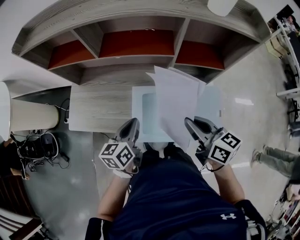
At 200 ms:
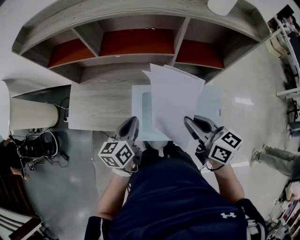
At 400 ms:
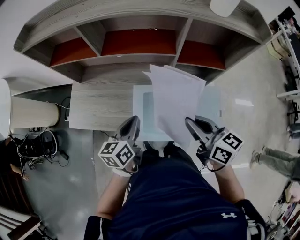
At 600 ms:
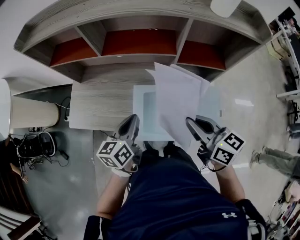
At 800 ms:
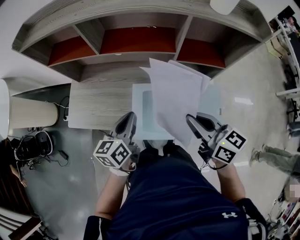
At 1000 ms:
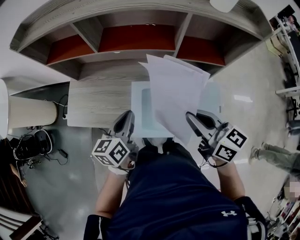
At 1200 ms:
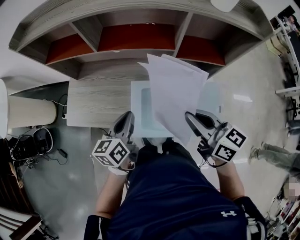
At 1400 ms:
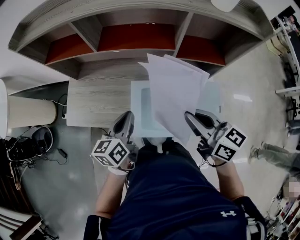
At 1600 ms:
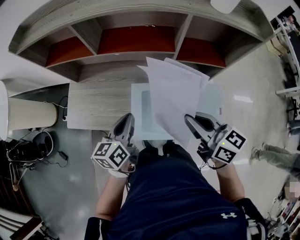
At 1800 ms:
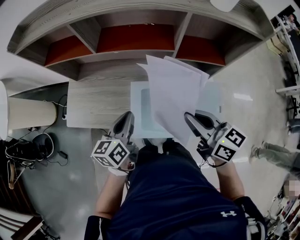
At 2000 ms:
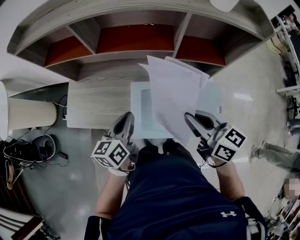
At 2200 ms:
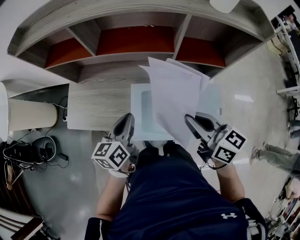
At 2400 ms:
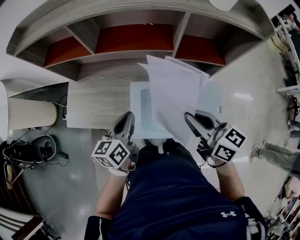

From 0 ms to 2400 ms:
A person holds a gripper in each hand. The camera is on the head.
From 0 ms to 1200 ms: There are only small adjustments of the grippers.
From 1200 ms to 2400 ms: Both grippers stay put.

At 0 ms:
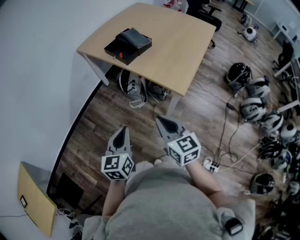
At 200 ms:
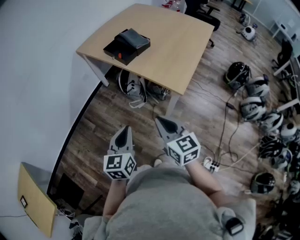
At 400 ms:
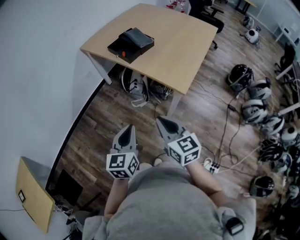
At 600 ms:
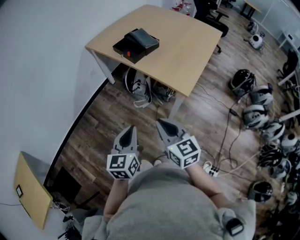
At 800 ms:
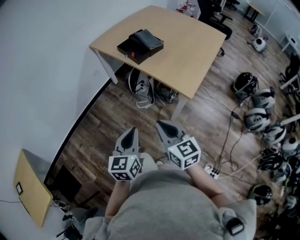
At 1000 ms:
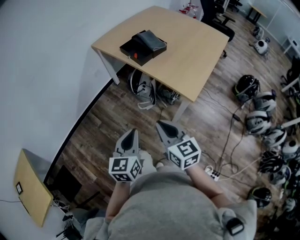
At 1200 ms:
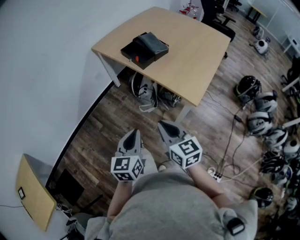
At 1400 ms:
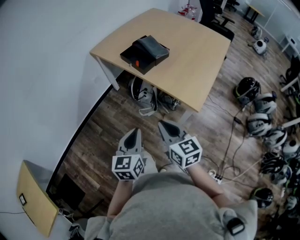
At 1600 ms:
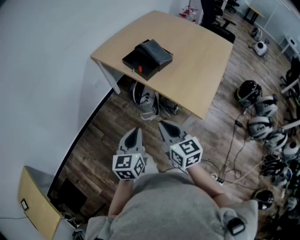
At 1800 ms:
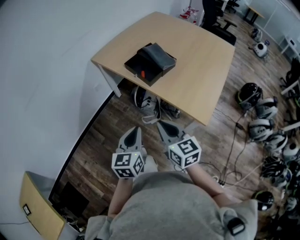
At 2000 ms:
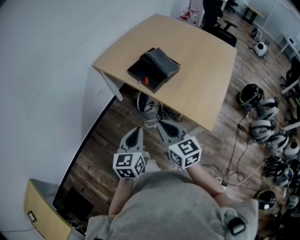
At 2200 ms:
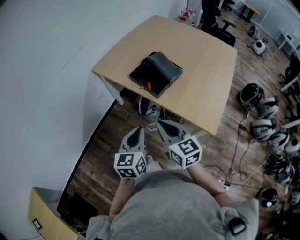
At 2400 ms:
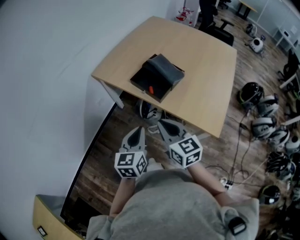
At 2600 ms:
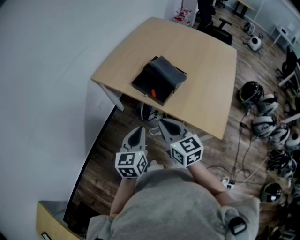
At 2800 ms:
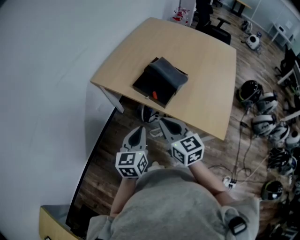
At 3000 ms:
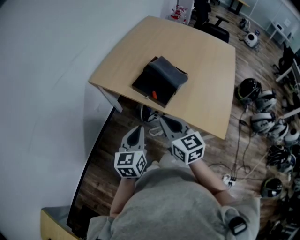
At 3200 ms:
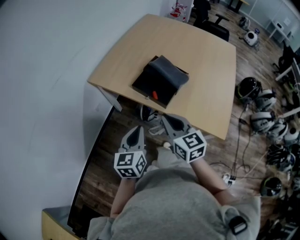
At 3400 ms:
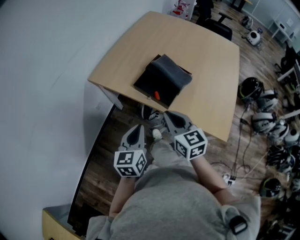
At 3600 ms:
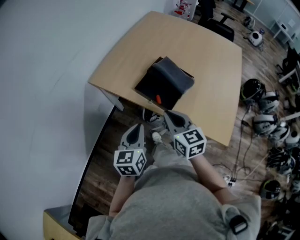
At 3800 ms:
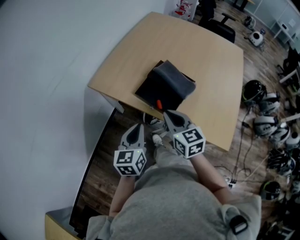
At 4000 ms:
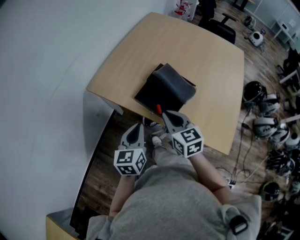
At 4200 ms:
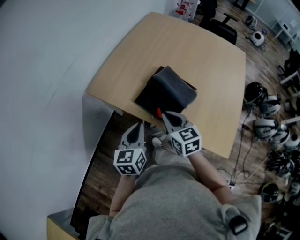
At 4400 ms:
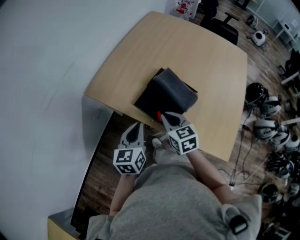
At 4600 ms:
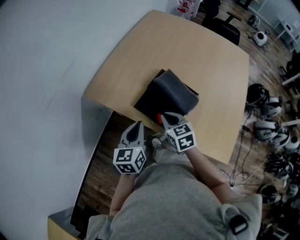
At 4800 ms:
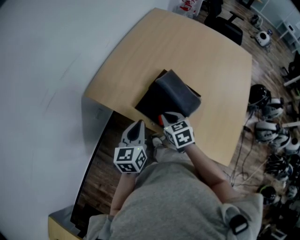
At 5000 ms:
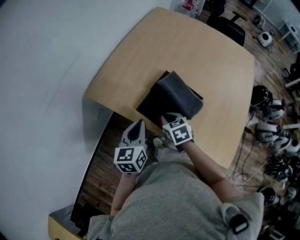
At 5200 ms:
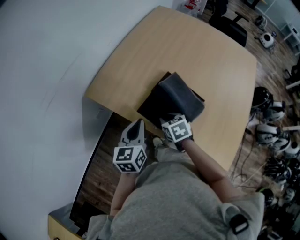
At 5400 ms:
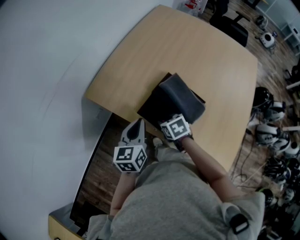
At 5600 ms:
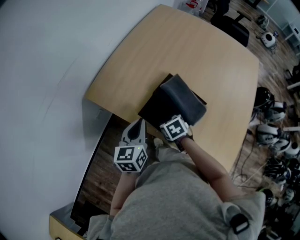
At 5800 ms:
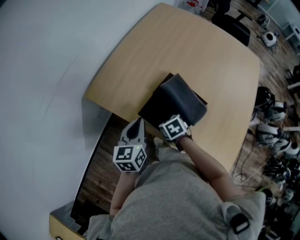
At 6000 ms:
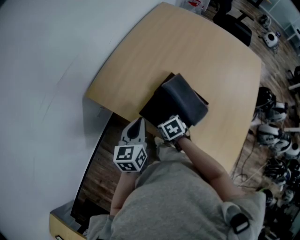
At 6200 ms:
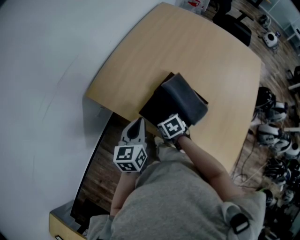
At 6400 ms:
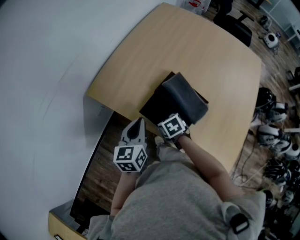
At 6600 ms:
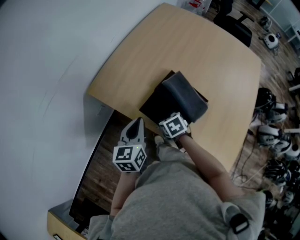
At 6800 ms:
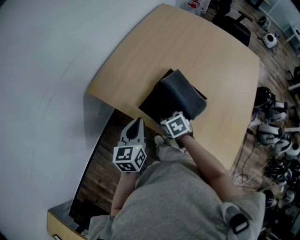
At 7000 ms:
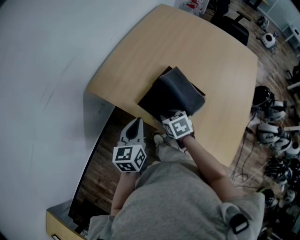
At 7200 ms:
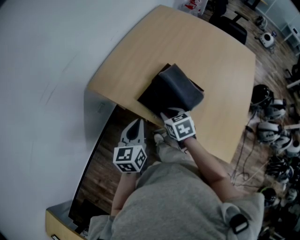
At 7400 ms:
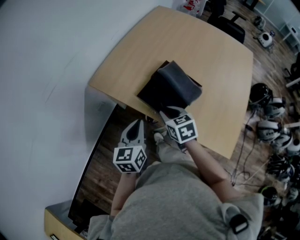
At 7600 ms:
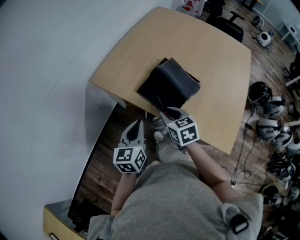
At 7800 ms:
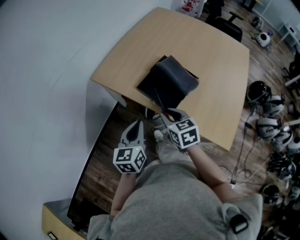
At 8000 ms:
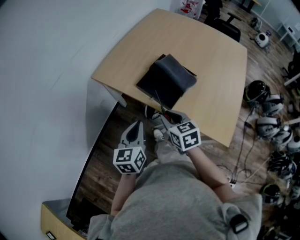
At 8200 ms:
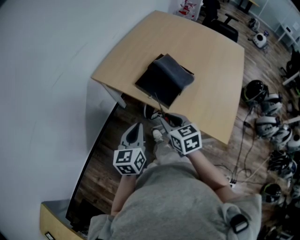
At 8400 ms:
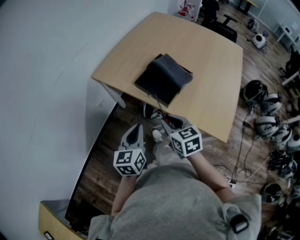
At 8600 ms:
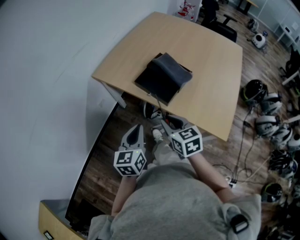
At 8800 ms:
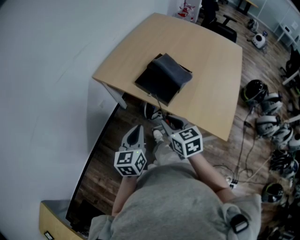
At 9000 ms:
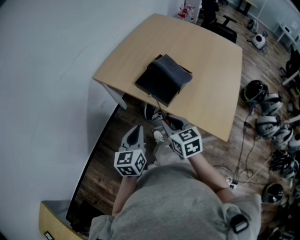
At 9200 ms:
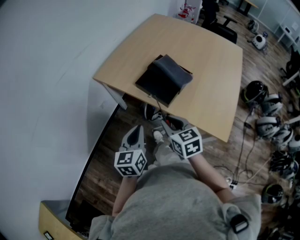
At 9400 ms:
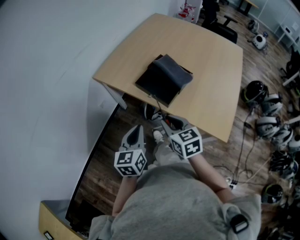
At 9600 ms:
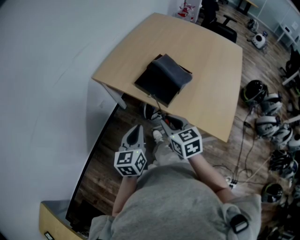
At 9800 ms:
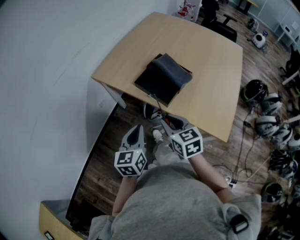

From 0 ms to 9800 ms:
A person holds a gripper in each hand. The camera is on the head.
From 0 ms to 1400 ms: The right gripper is displaced forward and to the left by roughly 10 cm; the left gripper travels forward by some 5 cm.
From 1400 ms to 2800 ms: The left gripper is displaced forward by approximately 25 cm; the right gripper goes roughly 30 cm forward and to the left.
From 2800 ms to 4200 ms: The grippers both shift forward by some 15 cm.
From 4200 ms to 5600 ms: The left gripper is displaced forward by roughly 10 cm. The right gripper heads downward and forward, covering approximately 15 cm, tilts its fingers some 40 degrees downward, and opens its fingers.
From 5600 ms to 7000 ms: The left gripper moves approximately 5 cm.
From 7000 ms to 8400 ms: The left gripper is displaced backward by approximately 20 cm. Meanwhile the right gripper heads backward and upward, covering some 20 cm, and changes its angle by about 20 degrees.
From 8400 ms to 9800 ms: There are only small adjustments of the grippers.

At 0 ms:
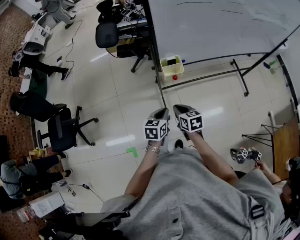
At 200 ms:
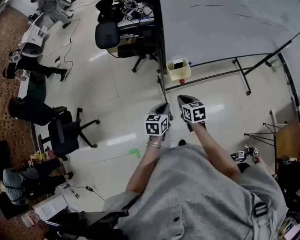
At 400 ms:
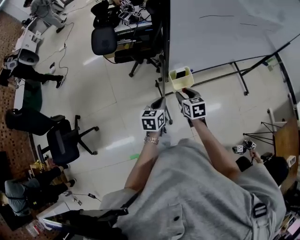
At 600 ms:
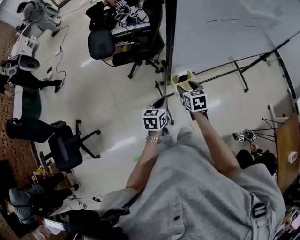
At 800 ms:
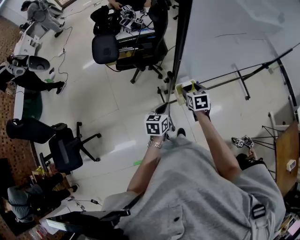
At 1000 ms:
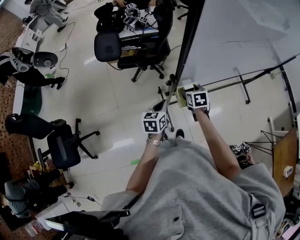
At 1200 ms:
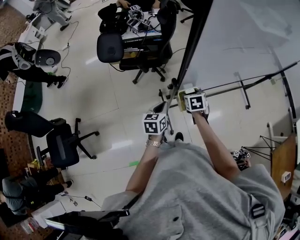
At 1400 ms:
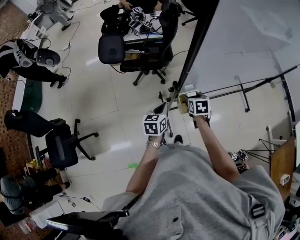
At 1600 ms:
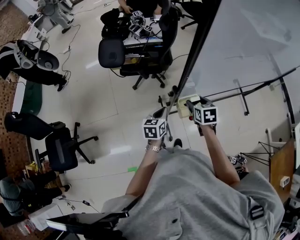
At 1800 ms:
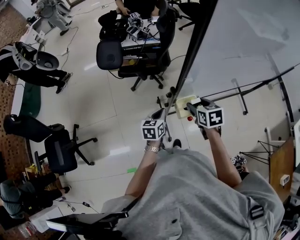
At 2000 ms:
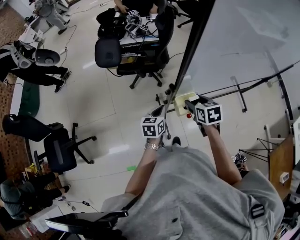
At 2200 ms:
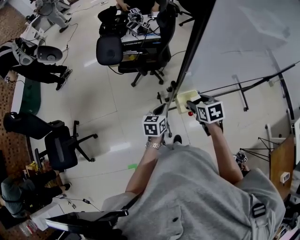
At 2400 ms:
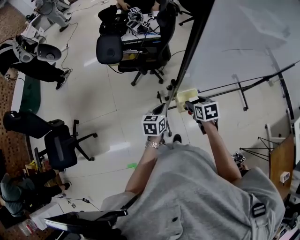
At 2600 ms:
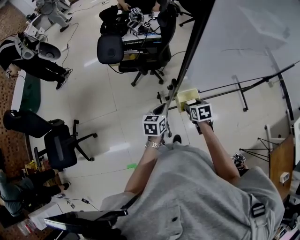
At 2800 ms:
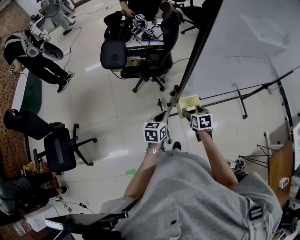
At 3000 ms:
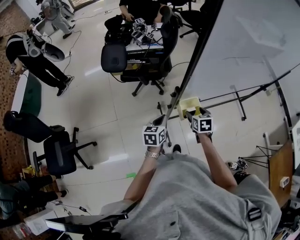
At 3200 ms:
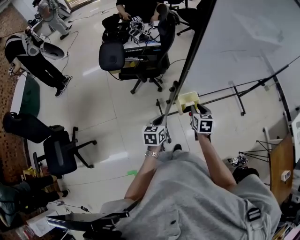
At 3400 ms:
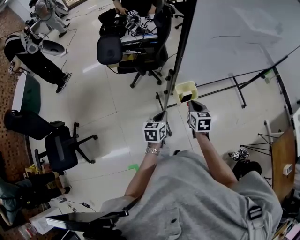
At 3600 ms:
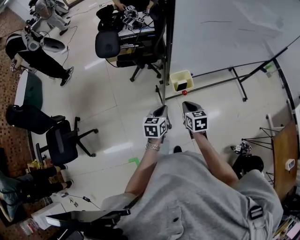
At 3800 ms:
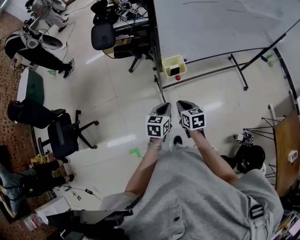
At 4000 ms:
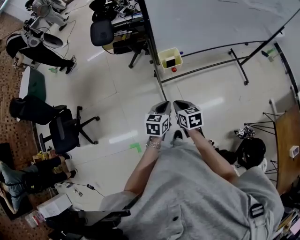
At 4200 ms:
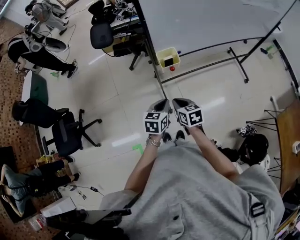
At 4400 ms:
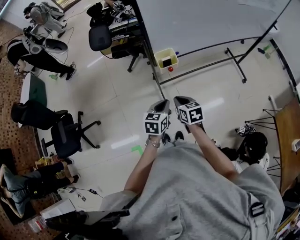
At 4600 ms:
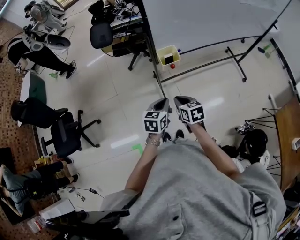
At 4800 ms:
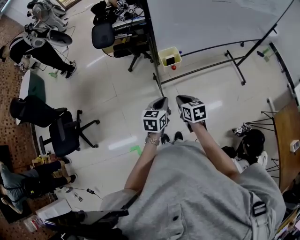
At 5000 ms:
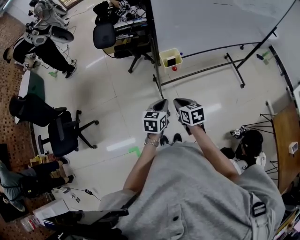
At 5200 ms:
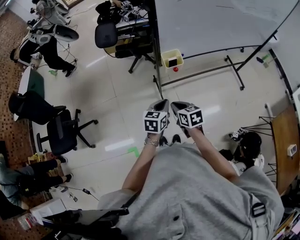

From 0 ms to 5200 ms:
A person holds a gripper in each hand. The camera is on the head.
From 0 ms to 1800 ms: The left gripper heads forward and to the left, covering approximately 25 cm; the right gripper moves forward, approximately 25 cm, and opens its fingers.
From 1800 ms to 3400 ms: Both grippers travel together backward, some 10 cm. The right gripper closes up.
From 3400 ms to 5200 ms: Both grippers move backward, approximately 20 cm. The right gripper rotates some 20 degrees.

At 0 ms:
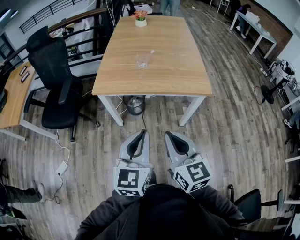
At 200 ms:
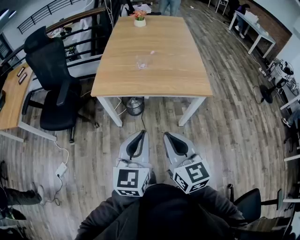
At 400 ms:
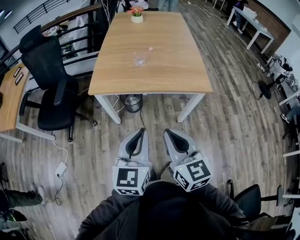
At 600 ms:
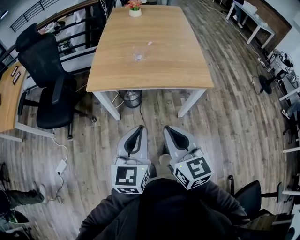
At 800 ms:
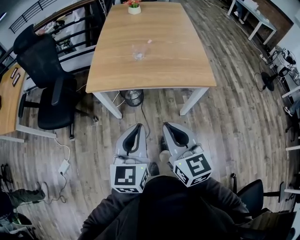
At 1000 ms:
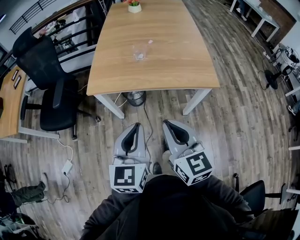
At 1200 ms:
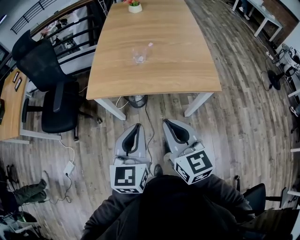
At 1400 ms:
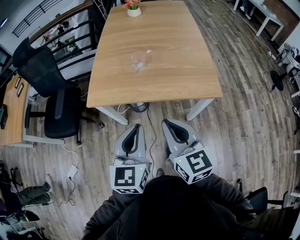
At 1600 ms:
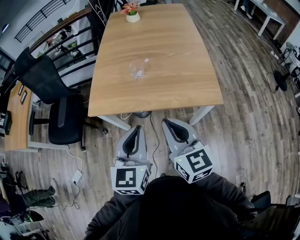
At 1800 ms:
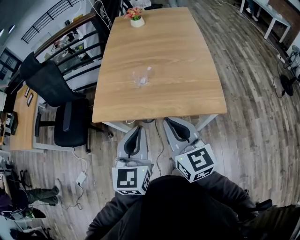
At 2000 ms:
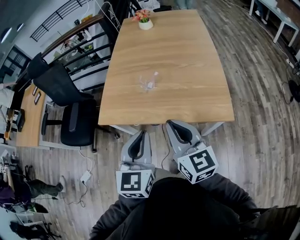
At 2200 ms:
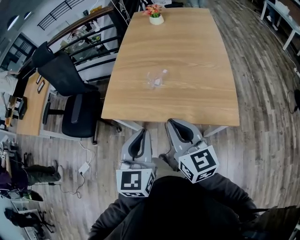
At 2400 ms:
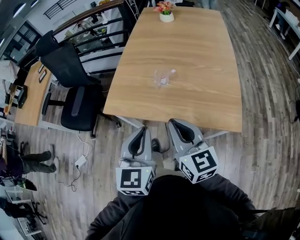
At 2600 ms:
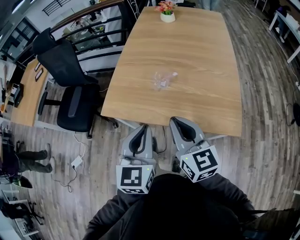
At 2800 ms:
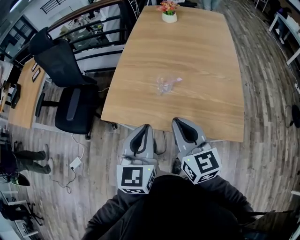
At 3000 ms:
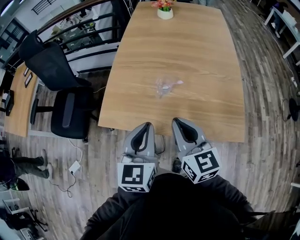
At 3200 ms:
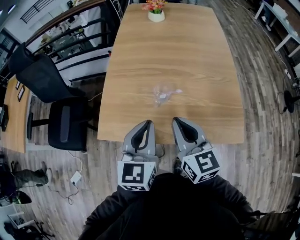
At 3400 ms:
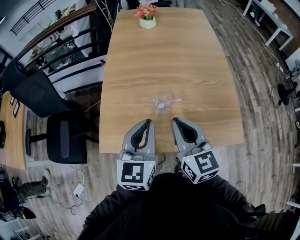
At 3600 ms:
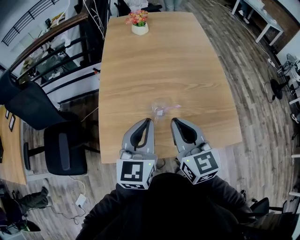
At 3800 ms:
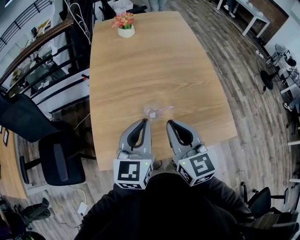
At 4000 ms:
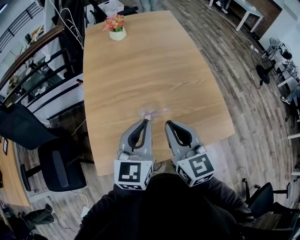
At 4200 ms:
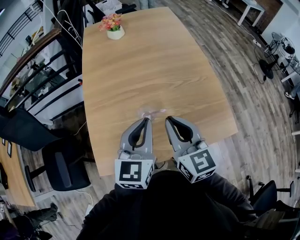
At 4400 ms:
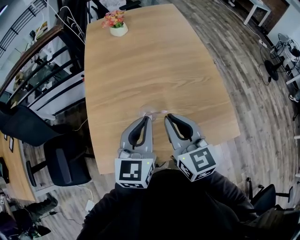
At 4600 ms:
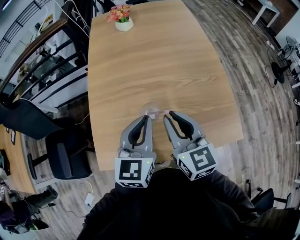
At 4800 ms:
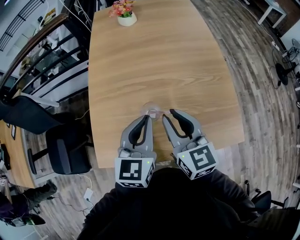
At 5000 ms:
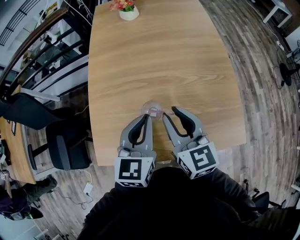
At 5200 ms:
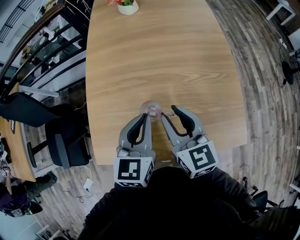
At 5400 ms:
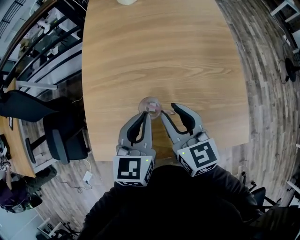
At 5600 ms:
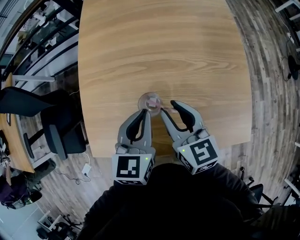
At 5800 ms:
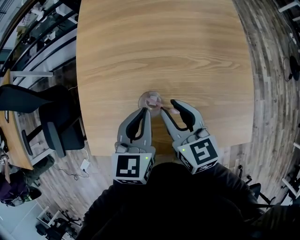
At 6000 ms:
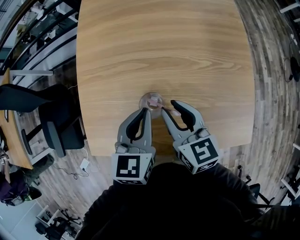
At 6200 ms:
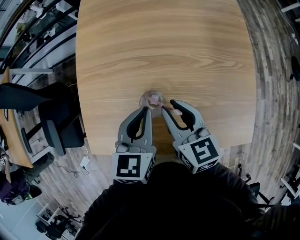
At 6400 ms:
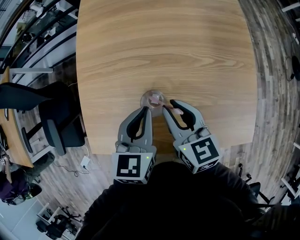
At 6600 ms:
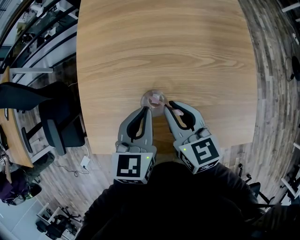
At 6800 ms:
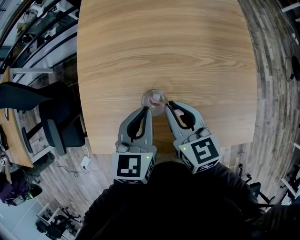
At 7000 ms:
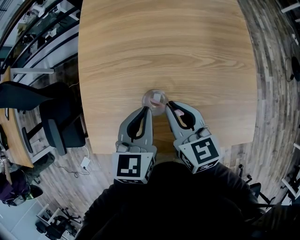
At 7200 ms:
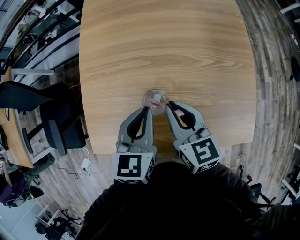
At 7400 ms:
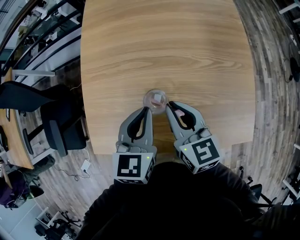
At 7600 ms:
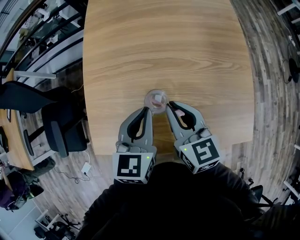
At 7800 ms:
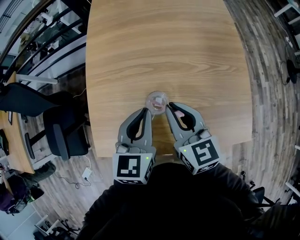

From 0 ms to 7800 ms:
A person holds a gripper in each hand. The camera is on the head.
From 0 ms to 1600 ms: Both grippers move forward, roughly 20 cm.
From 1600 ms to 3200 ms: The grippers both shift forward by about 20 cm.
From 3200 ms to 4600 ms: The two grippers go approximately 10 cm forward.
From 4600 ms to 6200 ms: Both grippers travel together downward, about 10 cm. The right gripper changes its angle by approximately 20 degrees.
From 6200 ms to 7800 ms: The right gripper shifts some 5 cm upward.
